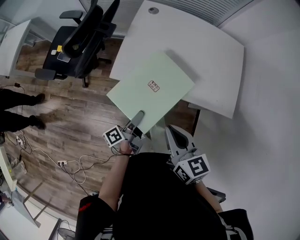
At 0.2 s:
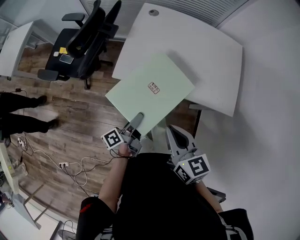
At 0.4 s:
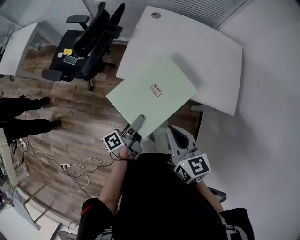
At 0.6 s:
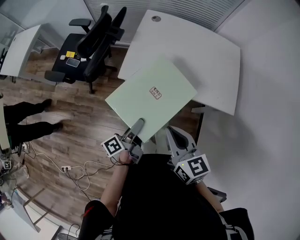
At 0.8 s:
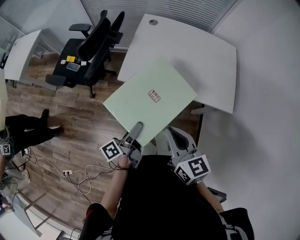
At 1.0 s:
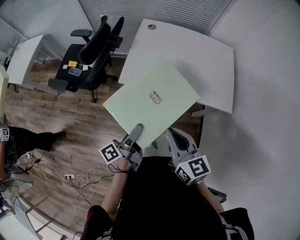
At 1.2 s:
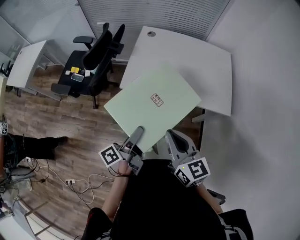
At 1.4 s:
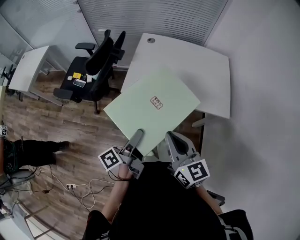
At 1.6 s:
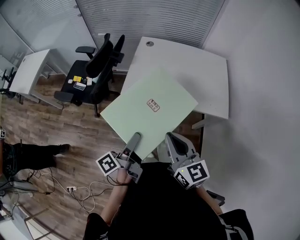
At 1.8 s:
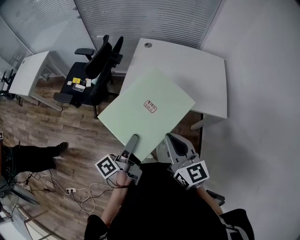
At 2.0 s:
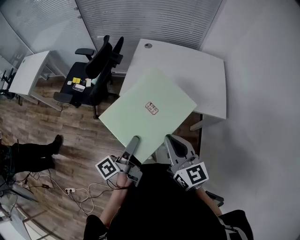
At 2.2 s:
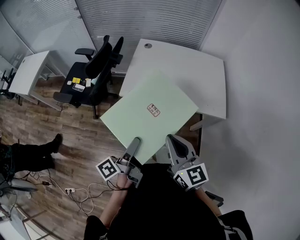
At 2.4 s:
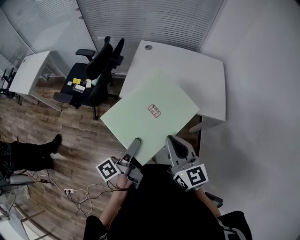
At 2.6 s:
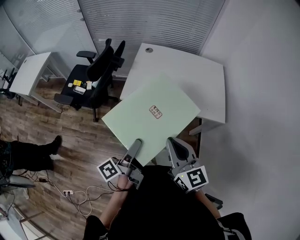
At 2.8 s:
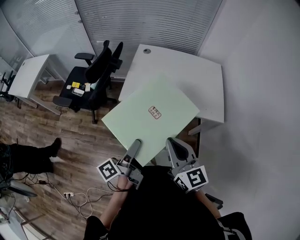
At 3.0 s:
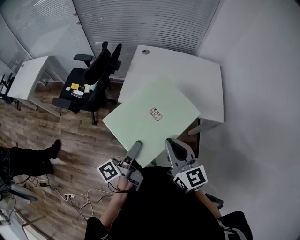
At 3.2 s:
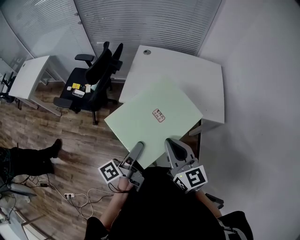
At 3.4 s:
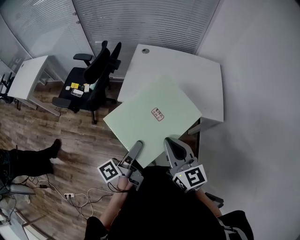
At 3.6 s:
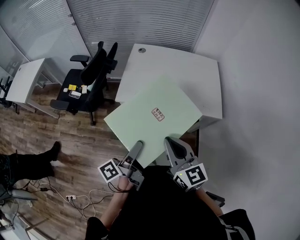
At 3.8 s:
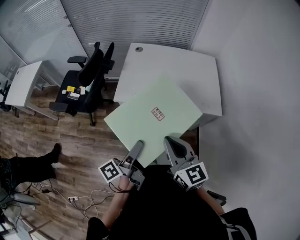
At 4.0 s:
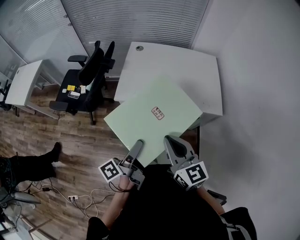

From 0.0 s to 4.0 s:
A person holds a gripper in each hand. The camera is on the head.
From 0.0 s to 1.4 s: The right gripper goes roughly 15 cm backward and upward. Meanwhile the left gripper shifts about 20 cm upward and backward.
From 1.4 s to 4.0 s: The grippers stay close to where they were, moving slightly.

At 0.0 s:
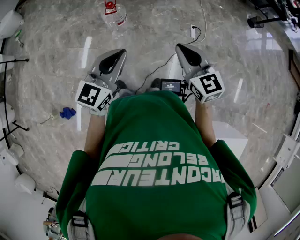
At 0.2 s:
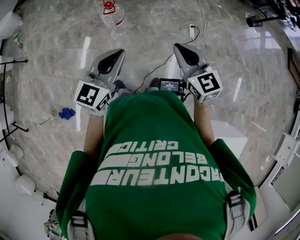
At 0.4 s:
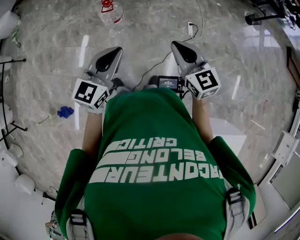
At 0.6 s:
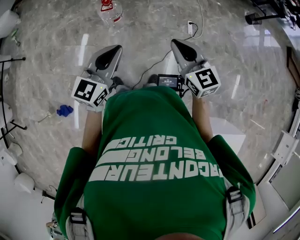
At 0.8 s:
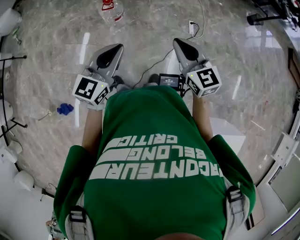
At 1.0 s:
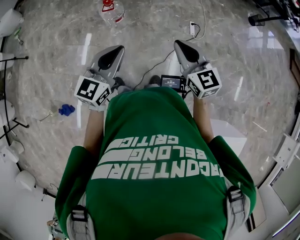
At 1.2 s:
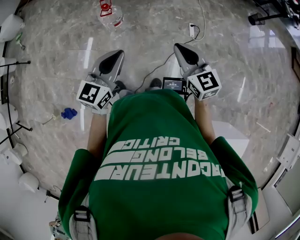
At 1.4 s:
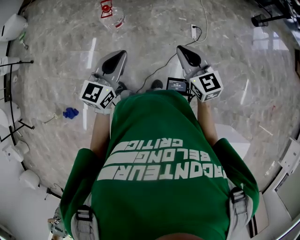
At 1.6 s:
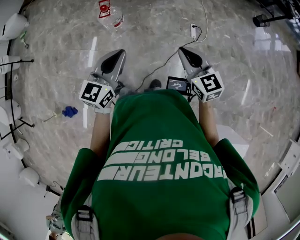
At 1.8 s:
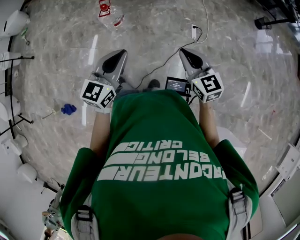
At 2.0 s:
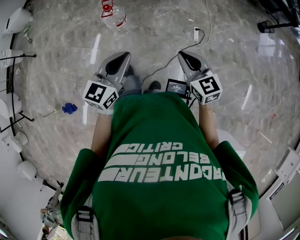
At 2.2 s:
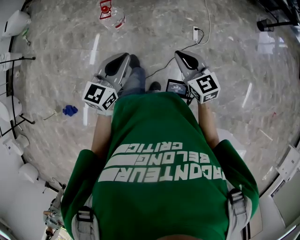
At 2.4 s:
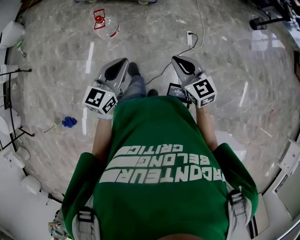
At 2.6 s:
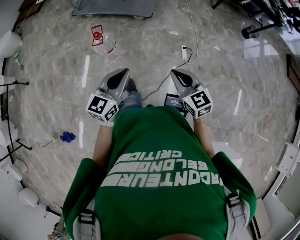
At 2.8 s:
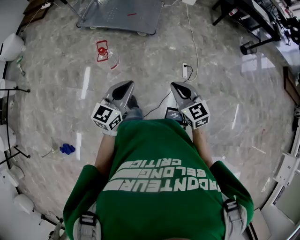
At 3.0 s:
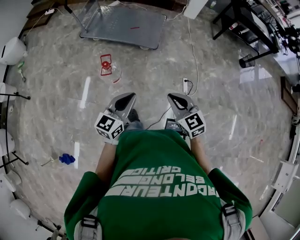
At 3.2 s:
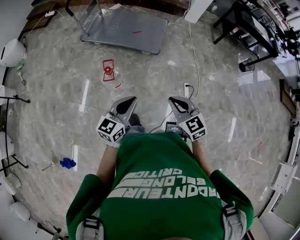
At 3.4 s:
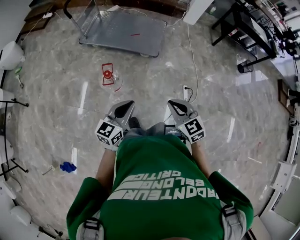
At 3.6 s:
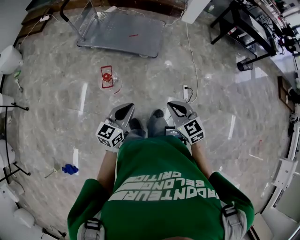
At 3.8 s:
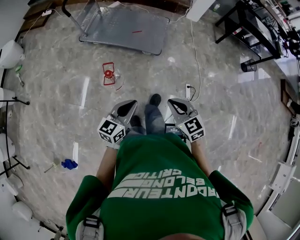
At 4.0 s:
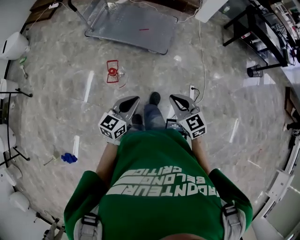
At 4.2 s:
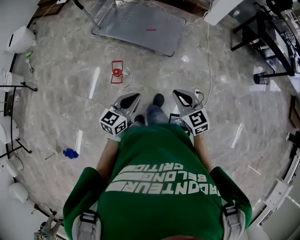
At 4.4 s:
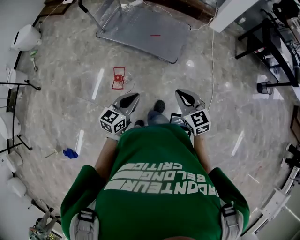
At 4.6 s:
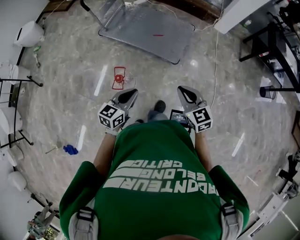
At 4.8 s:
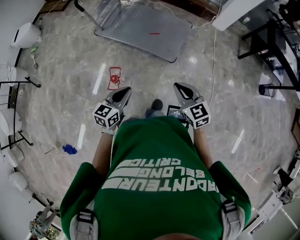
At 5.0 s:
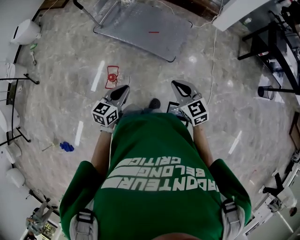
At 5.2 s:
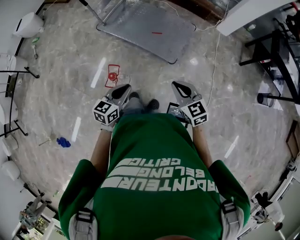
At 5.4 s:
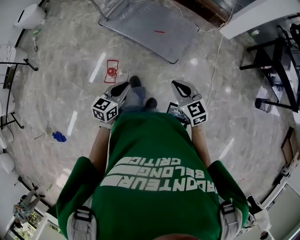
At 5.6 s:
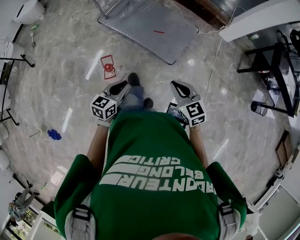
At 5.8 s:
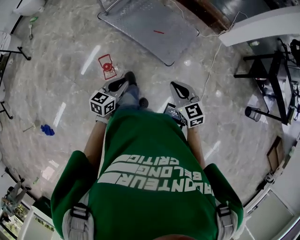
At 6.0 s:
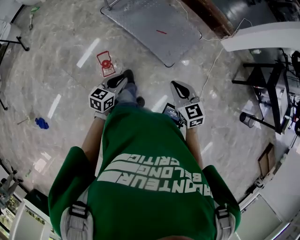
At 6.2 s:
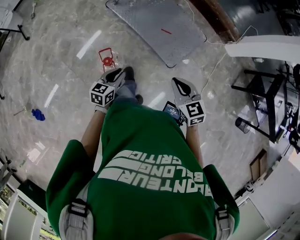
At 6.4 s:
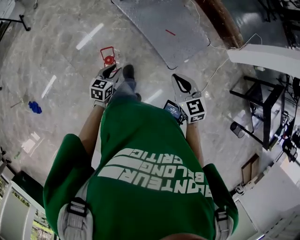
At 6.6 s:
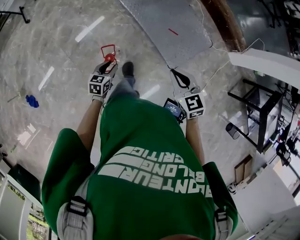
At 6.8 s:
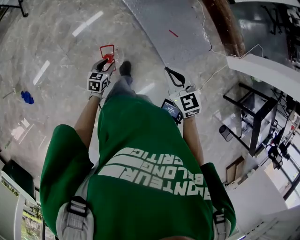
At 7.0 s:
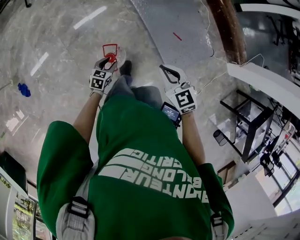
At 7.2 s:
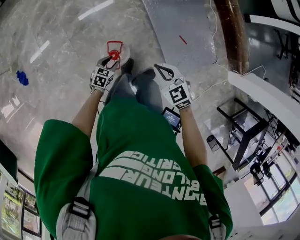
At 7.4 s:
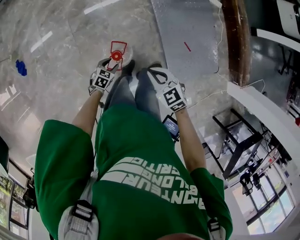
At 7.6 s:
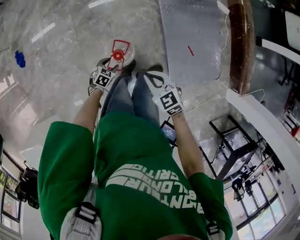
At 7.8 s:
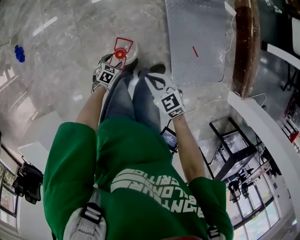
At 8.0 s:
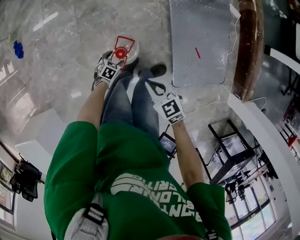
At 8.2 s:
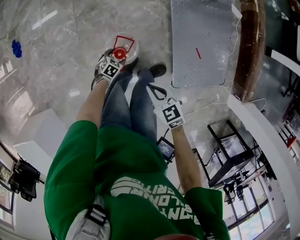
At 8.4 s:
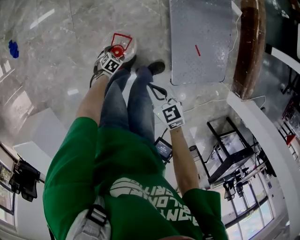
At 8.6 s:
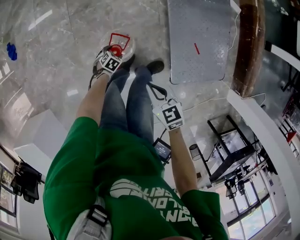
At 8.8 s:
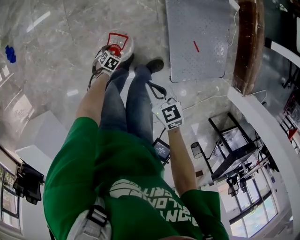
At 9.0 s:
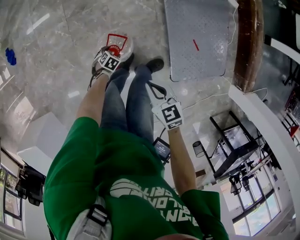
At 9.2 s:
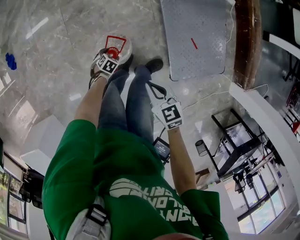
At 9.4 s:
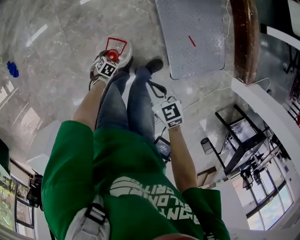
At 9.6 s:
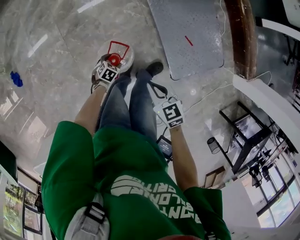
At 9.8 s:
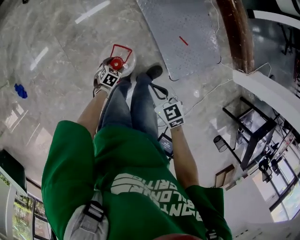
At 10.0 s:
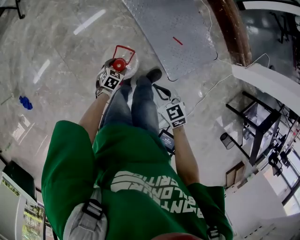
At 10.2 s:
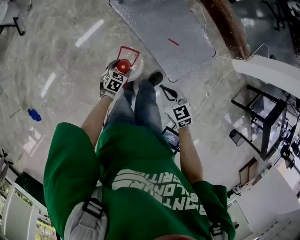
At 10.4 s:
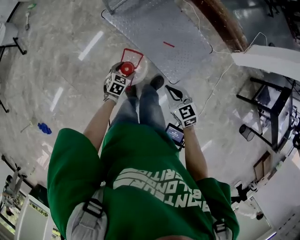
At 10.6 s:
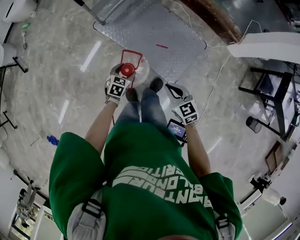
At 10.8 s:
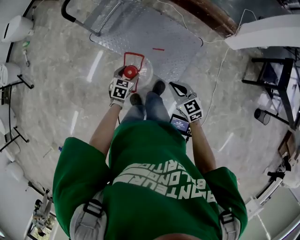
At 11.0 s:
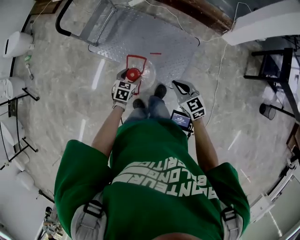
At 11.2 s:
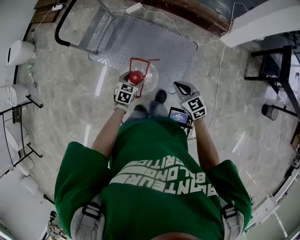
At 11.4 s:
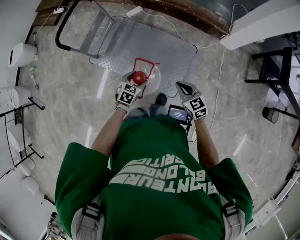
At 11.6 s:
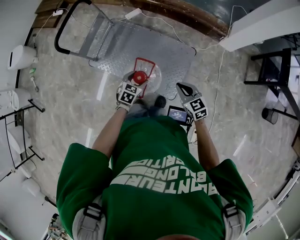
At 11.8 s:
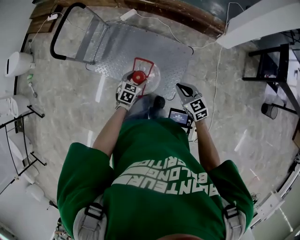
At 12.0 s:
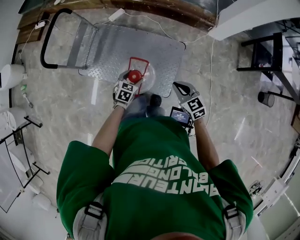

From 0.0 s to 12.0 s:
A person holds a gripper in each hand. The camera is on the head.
From 0.0 s to 1.6 s: The grippers both shift to the right by roughly 10 cm.
From 1.6 s to 3.0 s: The right gripper shifts some 20 cm forward and to the left; the left gripper shifts about 20 cm forward.
From 3.0 s to 4.4 s: The grippers both shift forward by roughly 20 cm.
From 4.4 s to 6.0 s: The right gripper is displaced forward by about 20 cm; the left gripper moves forward and downward, approximately 20 cm, and swivels about 20 degrees.
From 6.0 s to 7.6 s: The right gripper ends up approximately 35 cm from where it was, and swivels about 50 degrees. The left gripper shifts about 30 cm downward, angles its fingers downward, by about 30 degrees, and opens.
From 7.6 s to 9.0 s: The right gripper shifts some 5 cm downward. Meanwhile the left gripper is displaced downward by about 15 cm.
From 9.0 s to 10.4 s: The left gripper goes roughly 25 cm upward, and swivels some 40 degrees; the right gripper changes place by roughly 20 cm, and changes its angle by approximately 30 degrees.
From 10.4 s to 12.0 s: The grippers both shift to the right and forward by approximately 30 cm. The right gripper turns by about 20 degrees. The left gripper rotates roughly 20 degrees.

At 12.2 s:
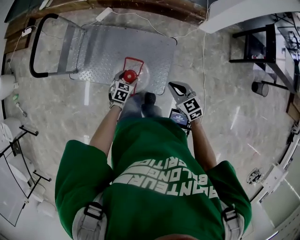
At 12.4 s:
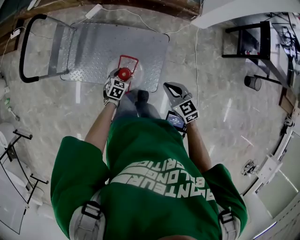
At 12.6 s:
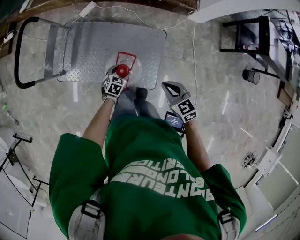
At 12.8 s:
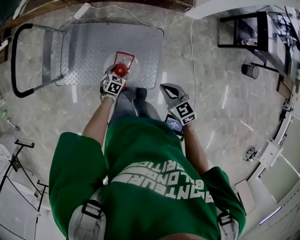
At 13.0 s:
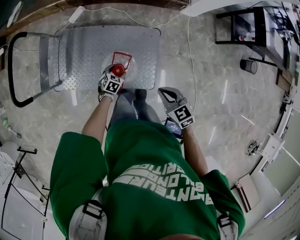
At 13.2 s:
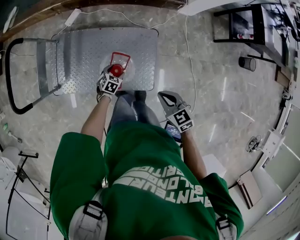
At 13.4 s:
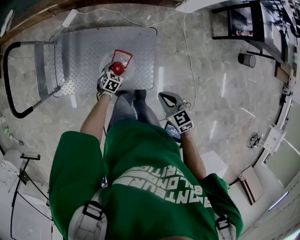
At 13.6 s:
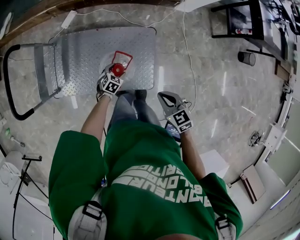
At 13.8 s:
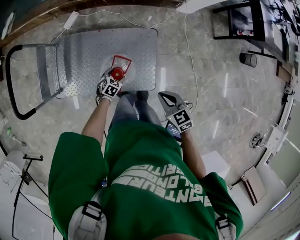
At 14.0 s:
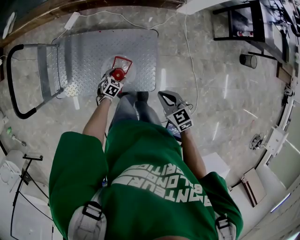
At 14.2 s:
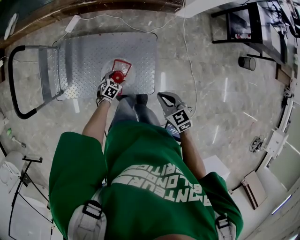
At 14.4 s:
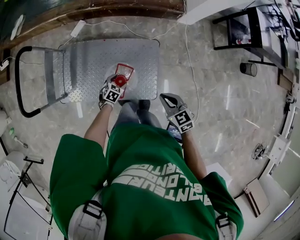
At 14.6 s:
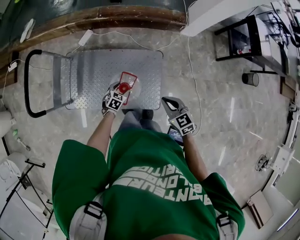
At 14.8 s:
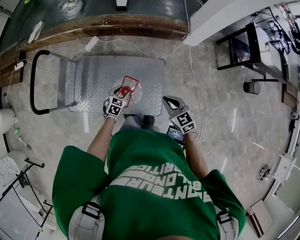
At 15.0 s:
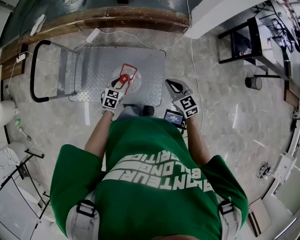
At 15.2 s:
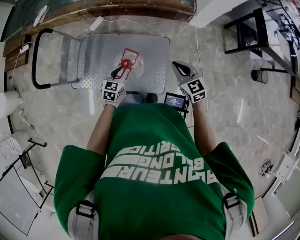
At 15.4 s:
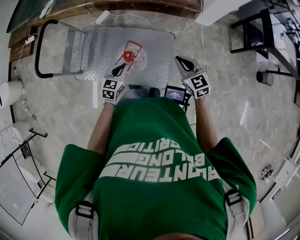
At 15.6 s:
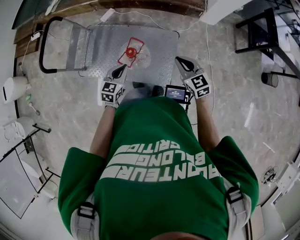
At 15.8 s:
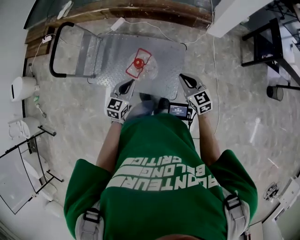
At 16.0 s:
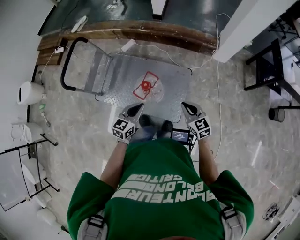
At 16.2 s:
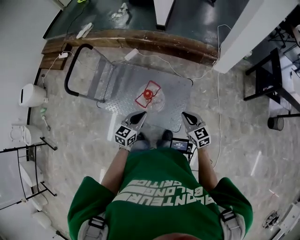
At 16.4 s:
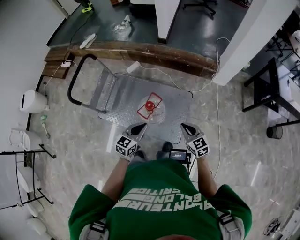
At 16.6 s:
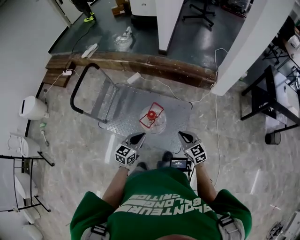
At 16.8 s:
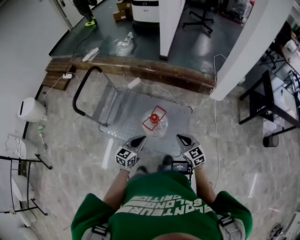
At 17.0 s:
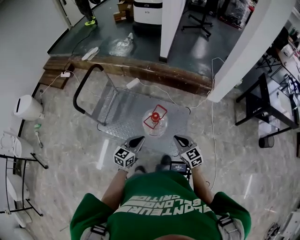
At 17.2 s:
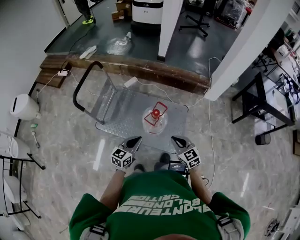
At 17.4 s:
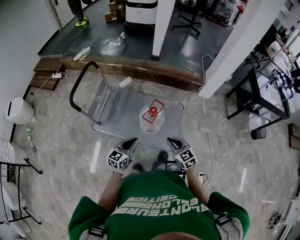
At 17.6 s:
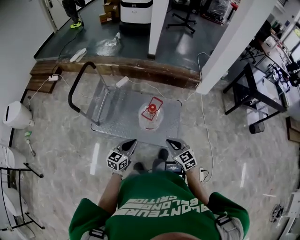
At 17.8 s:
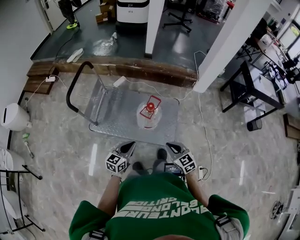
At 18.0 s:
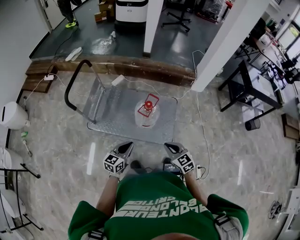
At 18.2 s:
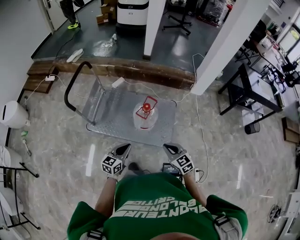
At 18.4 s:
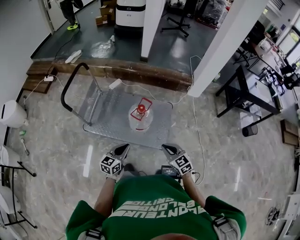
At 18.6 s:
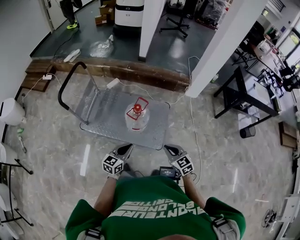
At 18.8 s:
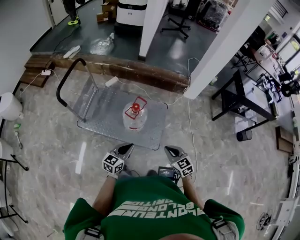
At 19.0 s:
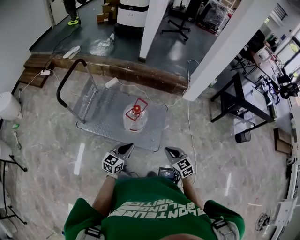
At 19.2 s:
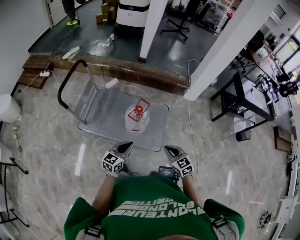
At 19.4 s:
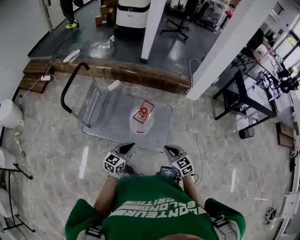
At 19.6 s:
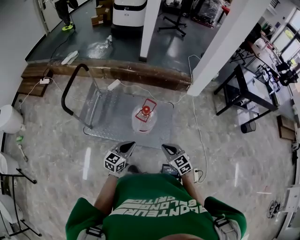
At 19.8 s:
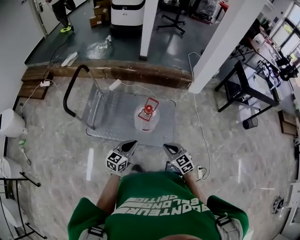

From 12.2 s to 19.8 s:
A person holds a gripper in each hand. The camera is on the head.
From 12.2 s to 13.8 s: The left gripper heads downward and forward, covering about 15 cm, and turns by some 20 degrees.
From 13.8 s to 15.2 s: The right gripper travels upward, forward and to the right by approximately 10 cm, and swivels some 20 degrees; the left gripper heads upward, covering roughly 25 cm, turns by some 30 degrees, and closes.
From 15.2 s to 16.8 s: The right gripper is displaced backward and to the left by about 15 cm. The left gripper heads backward and upward, covering approximately 20 cm.
From 16.8 s to 18.2 s: The grippers both shift backward and to the left by roughly 20 cm.
From 18.2 s to 19.8 s: The right gripper moves about 10 cm to the right and comes back. Meanwhile the left gripper reaches about 10 cm to the right, then returns.
